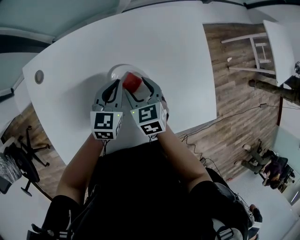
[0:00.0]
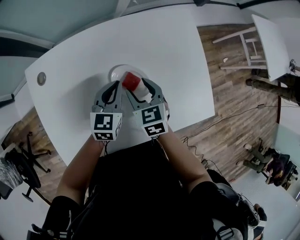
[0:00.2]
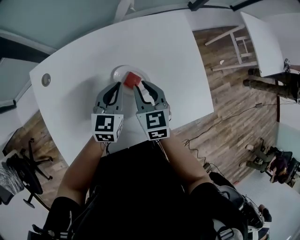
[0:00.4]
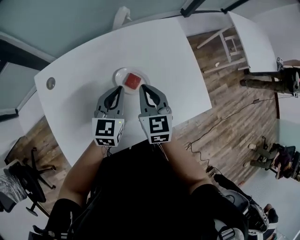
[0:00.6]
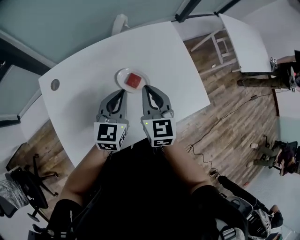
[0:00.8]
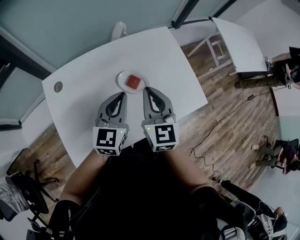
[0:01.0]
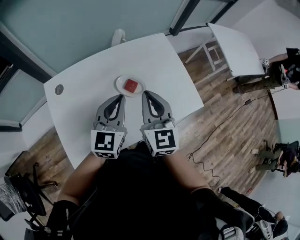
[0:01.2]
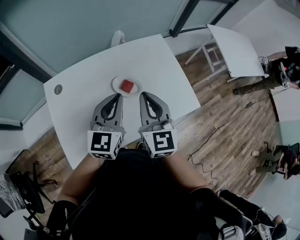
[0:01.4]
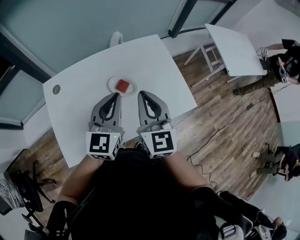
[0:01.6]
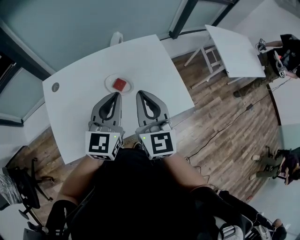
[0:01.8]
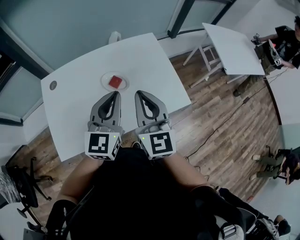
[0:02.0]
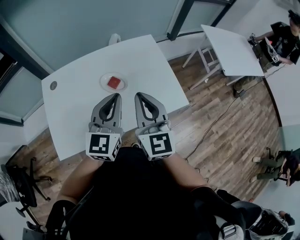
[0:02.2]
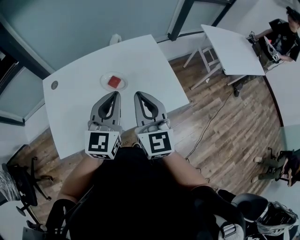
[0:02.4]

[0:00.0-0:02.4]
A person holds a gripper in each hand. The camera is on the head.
0:00.0 to 0:01.2: The grippers both shift upward and backward by approximately 25 cm. The left gripper changes its angle by approximately 30 degrees. Meanwhile the right gripper tips its fingers upward by some 40 degrees, and closes its fingers.
0:01.2 to 0:02.4: The right gripper travels to the right and backward by about 10 cm; the left gripper goes roughly 15 cm to the right, backward and upward.

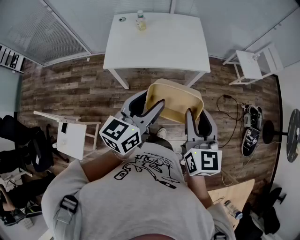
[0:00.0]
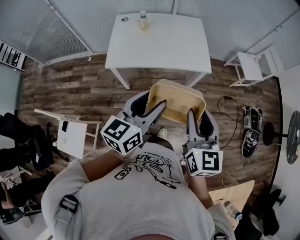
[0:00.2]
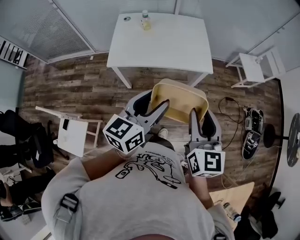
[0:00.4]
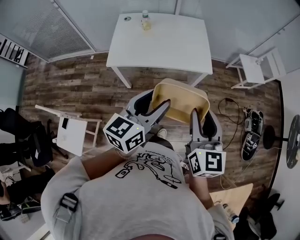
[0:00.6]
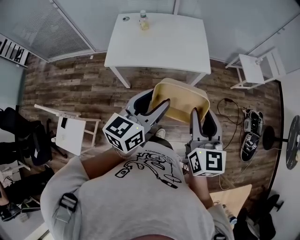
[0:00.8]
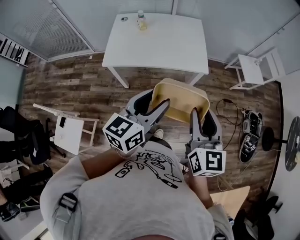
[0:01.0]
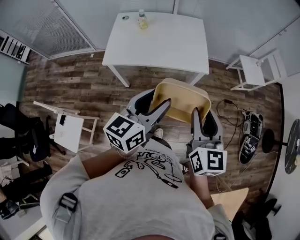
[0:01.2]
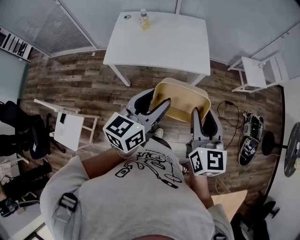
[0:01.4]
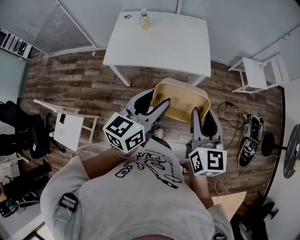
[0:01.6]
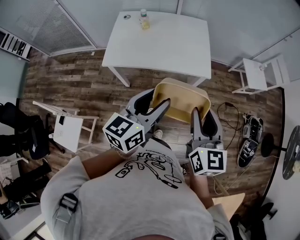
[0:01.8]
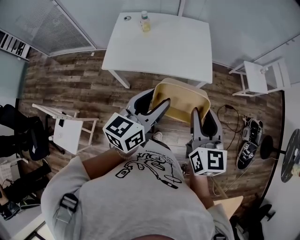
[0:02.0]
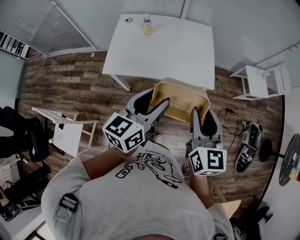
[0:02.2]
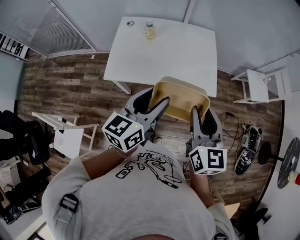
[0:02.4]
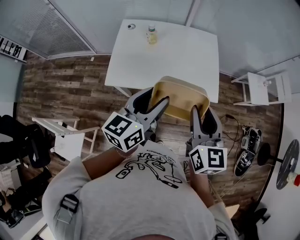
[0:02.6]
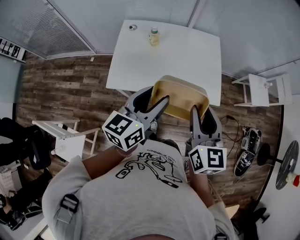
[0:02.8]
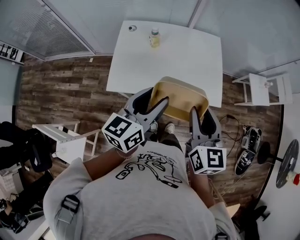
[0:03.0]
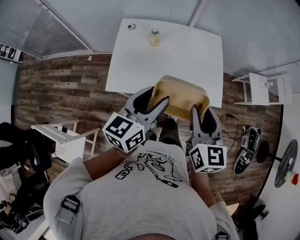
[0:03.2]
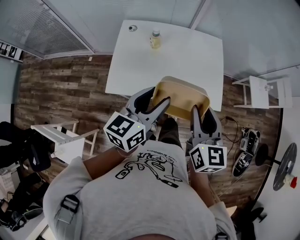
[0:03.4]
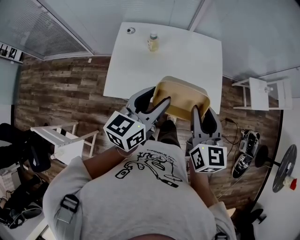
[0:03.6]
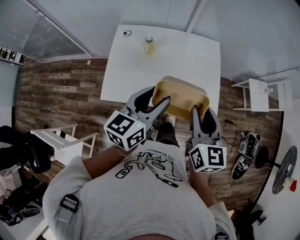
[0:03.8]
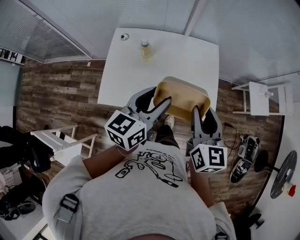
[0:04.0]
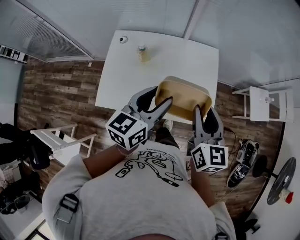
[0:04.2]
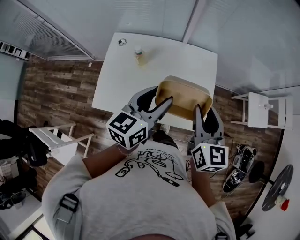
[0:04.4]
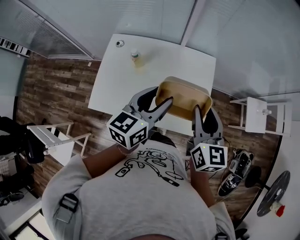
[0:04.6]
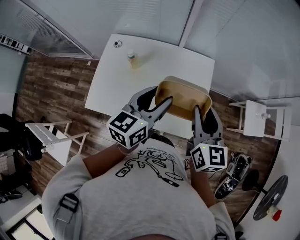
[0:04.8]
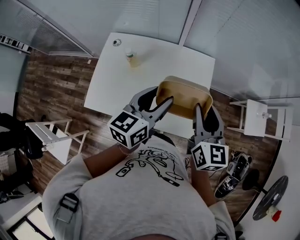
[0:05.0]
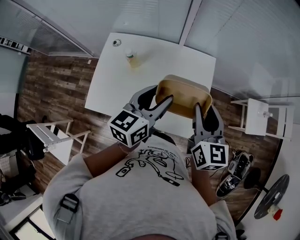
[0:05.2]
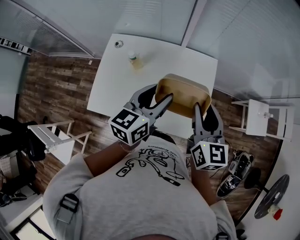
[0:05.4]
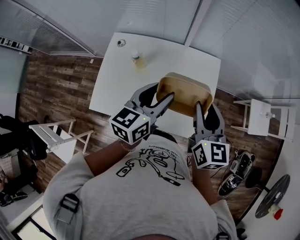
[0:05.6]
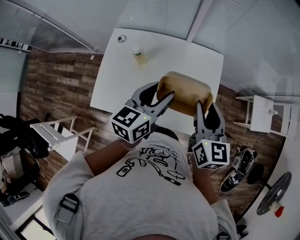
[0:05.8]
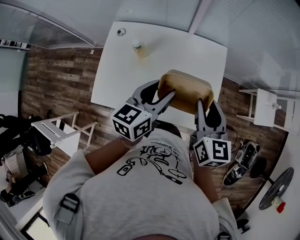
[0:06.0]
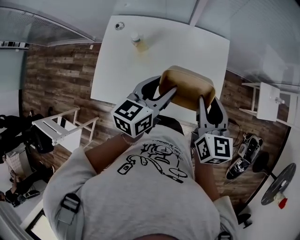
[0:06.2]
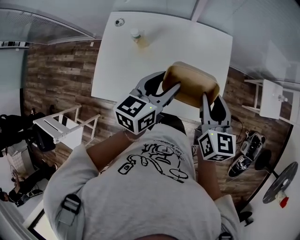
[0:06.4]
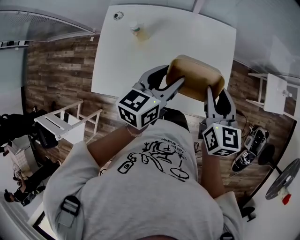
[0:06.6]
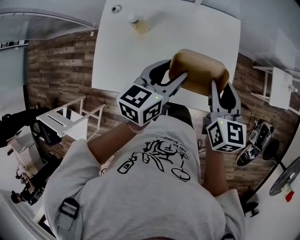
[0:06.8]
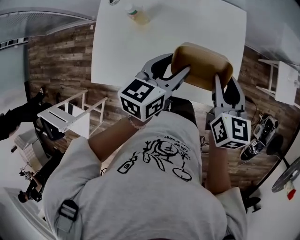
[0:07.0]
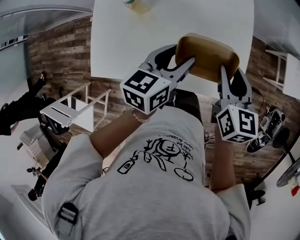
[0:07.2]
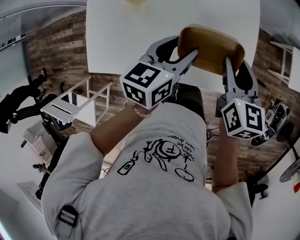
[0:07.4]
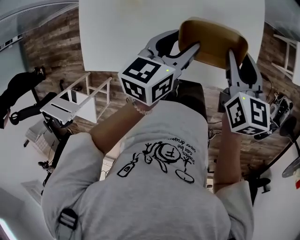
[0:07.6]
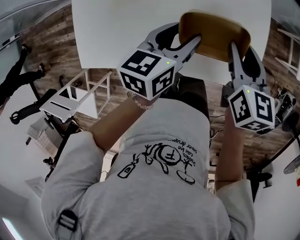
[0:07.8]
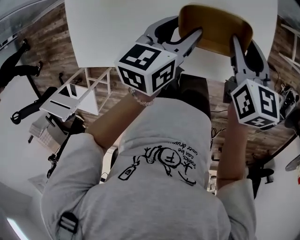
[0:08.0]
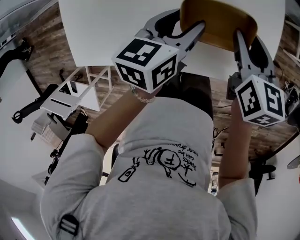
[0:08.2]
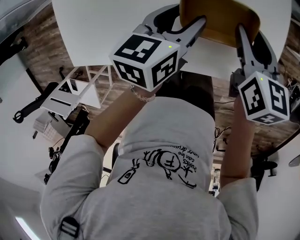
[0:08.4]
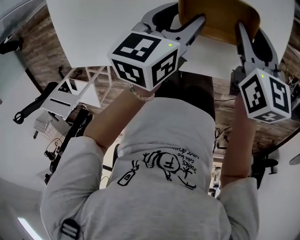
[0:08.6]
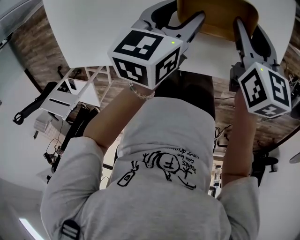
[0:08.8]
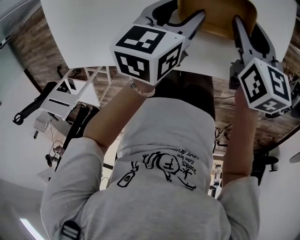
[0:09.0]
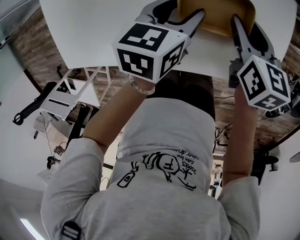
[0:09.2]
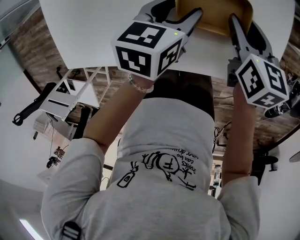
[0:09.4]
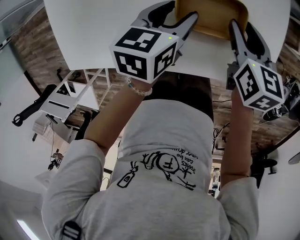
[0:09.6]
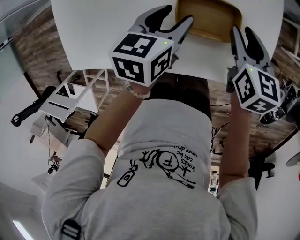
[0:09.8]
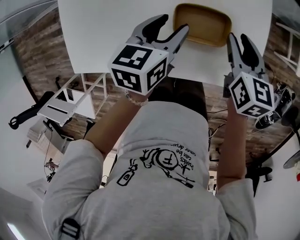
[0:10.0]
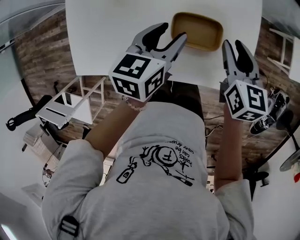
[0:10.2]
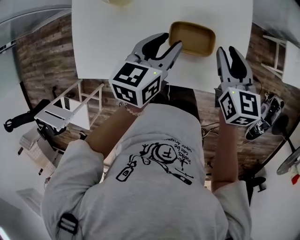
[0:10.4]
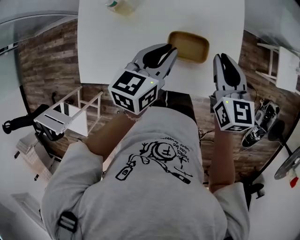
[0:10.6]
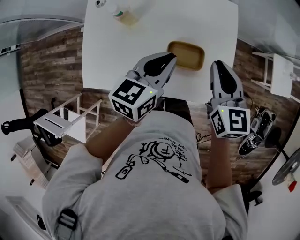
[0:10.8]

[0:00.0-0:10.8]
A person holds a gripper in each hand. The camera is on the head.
0:00.0 to 0:01.6: Both grippers travel together to the right, approximately 5 cm.
0:01.6 to 0:03.0: Both grippers travel together forward and to the left, approximately 25 cm.
0:03.0 to 0:04.6: Both grippers travel together forward and to the right, approximately 25 cm.
0:04.6 to 0:06.2: Both grippers travel together downward, roughly 5 cm.
0:06.2 to 0:07.8: Both grippers travel together downward, some 20 cm.
0:07.8 to 0:09.2: The grippers both shift downward by about 10 cm.
0:09.2 to 0:10.8: Both grippers travel together upward, some 25 cm. The left gripper turns by about 20 degrees, and closes its fingers; the right gripper turns by roughly 30 degrees, and closes.

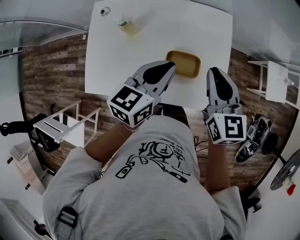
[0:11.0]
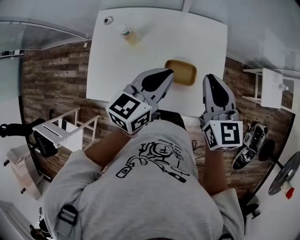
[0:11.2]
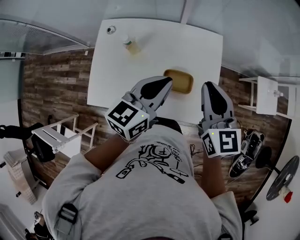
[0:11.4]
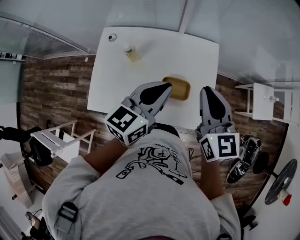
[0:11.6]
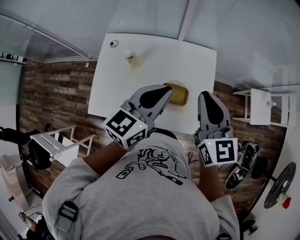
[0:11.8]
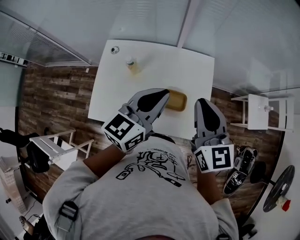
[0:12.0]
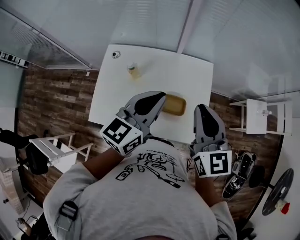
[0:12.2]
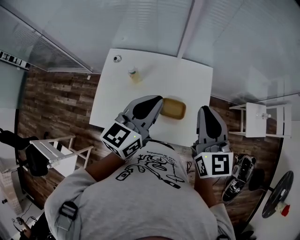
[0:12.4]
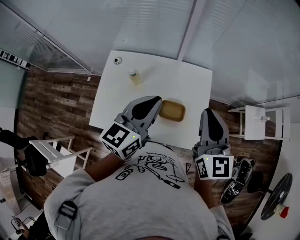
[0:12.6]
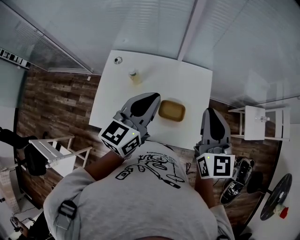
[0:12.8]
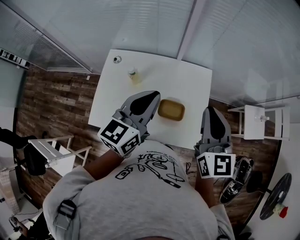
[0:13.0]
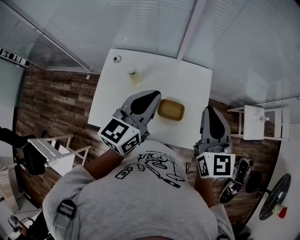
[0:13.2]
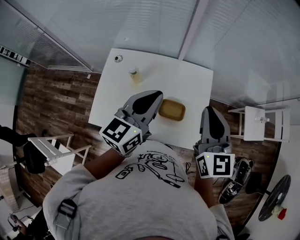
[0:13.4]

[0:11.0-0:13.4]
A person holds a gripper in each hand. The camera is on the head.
0:11.0 to 0:12.2: The grippers both shift upward by approximately 15 cm.
0:12.2 to 0:13.4: The grippers stay close to where they were, moving slightly.

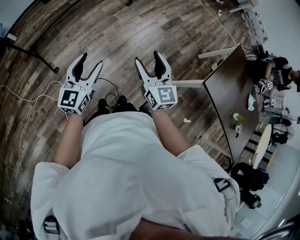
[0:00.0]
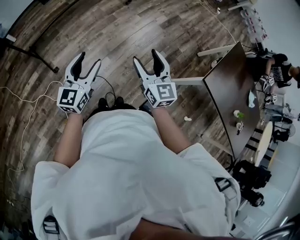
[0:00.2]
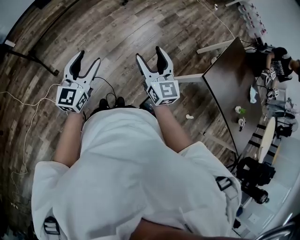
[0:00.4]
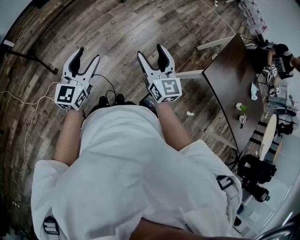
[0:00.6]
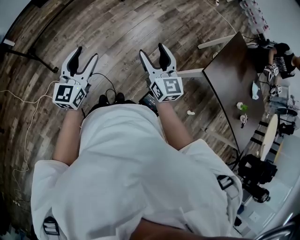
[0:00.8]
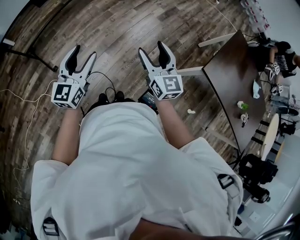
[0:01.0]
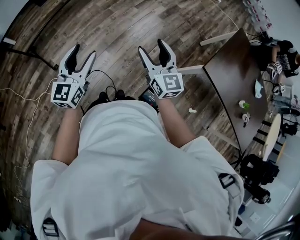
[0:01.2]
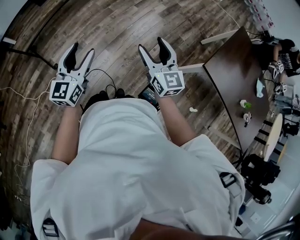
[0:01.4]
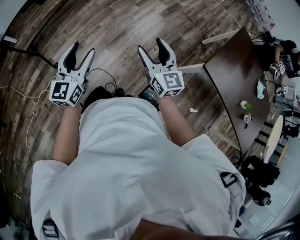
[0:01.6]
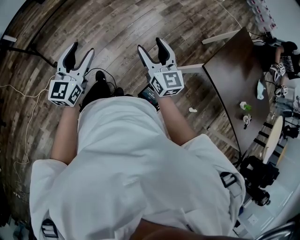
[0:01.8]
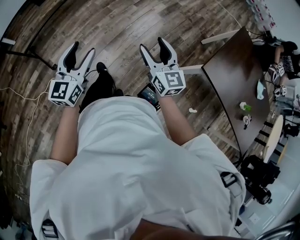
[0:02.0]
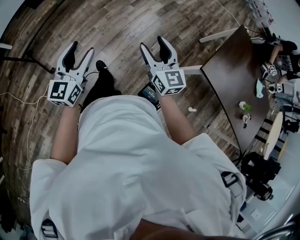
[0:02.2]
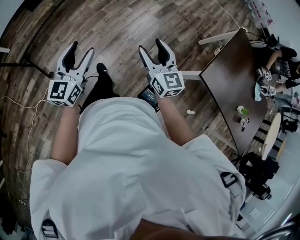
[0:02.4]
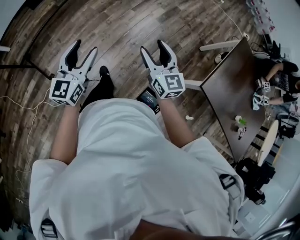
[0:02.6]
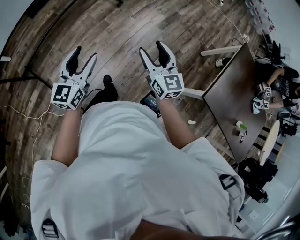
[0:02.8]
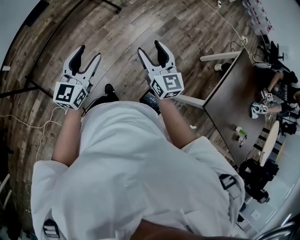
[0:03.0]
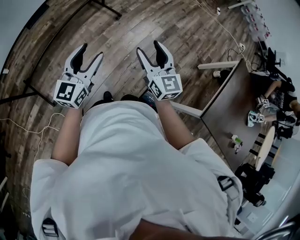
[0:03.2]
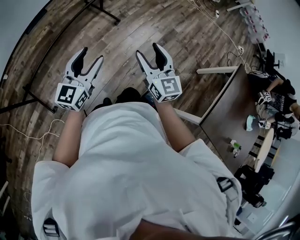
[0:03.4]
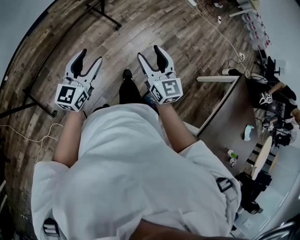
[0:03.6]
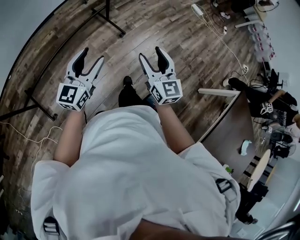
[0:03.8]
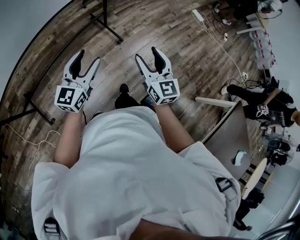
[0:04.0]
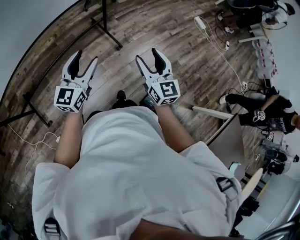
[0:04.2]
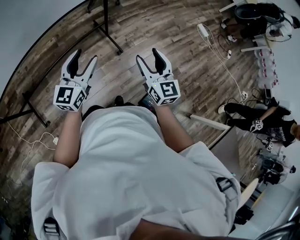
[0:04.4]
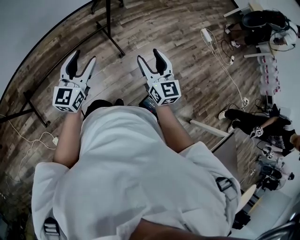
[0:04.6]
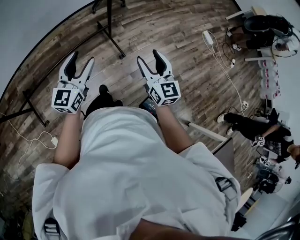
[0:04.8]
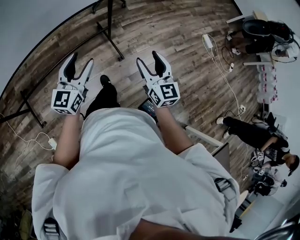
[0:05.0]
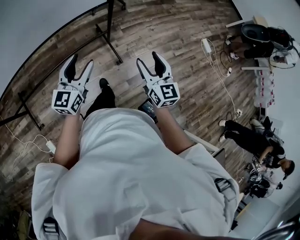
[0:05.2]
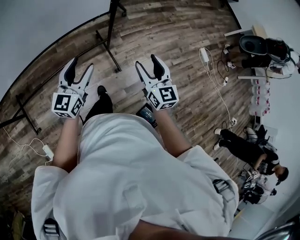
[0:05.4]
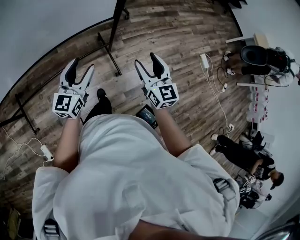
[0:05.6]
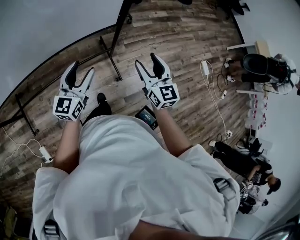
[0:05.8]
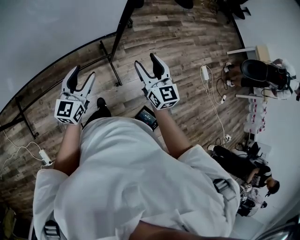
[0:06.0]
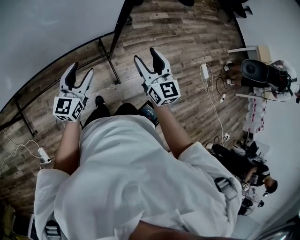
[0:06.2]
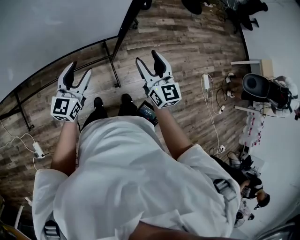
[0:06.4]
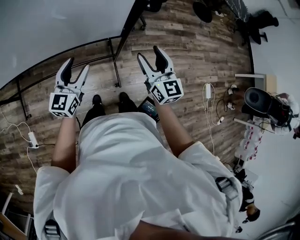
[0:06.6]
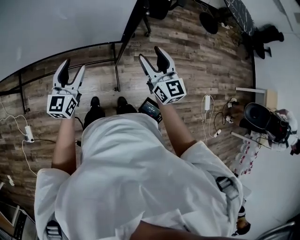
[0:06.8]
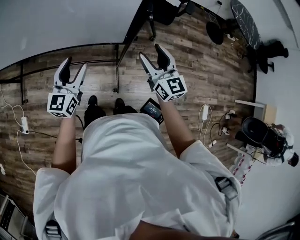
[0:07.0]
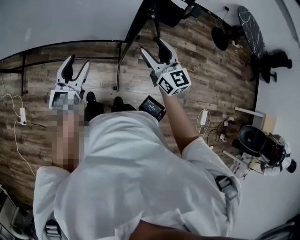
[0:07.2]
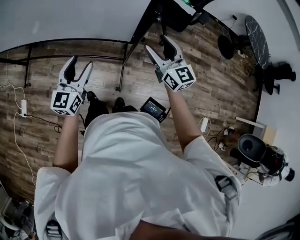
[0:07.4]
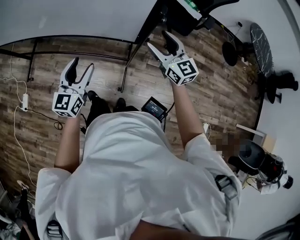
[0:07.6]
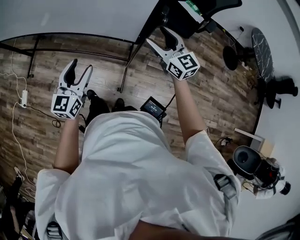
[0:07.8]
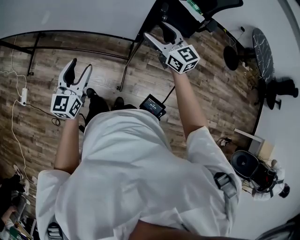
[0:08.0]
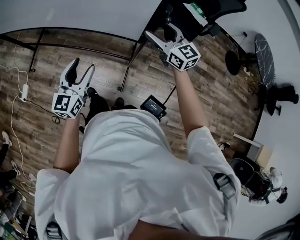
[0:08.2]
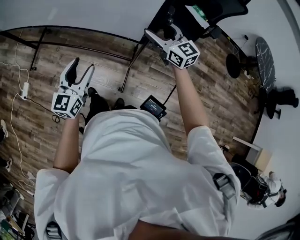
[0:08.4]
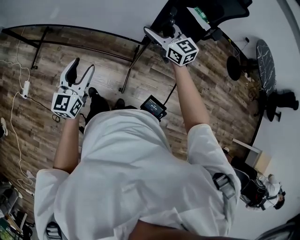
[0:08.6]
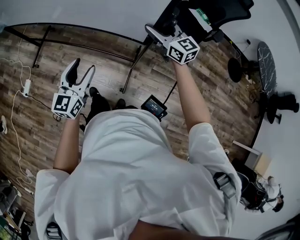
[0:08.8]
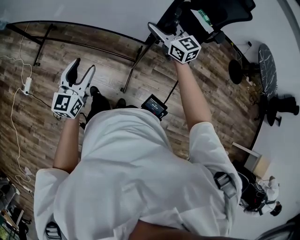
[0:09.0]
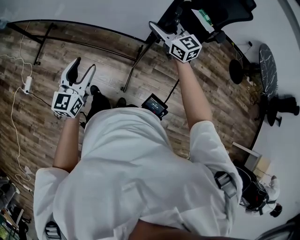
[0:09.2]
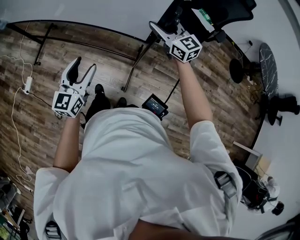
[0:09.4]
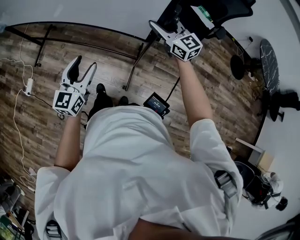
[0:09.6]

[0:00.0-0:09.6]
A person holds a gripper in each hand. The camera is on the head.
0:00.0 to 0:01.6: Both grippers travel together to the right, approximately 10 cm.
0:01.6 to 0:03.2: The pair of grippers is taken forward, some 40 cm.
0:03.2 to 0:04.8: The pair of grippers is taken forward, some 50 cm. The left gripper changes its angle by about 20 degrees.
0:04.8 to 0:06.4: Both grippers move forward, about 30 cm.
0:06.4 to 0:08.0: The left gripper ends up approximately 5 cm from where it was, and turns by some 40 degrees. The right gripper ends up about 15 cm from where it was, and changes its angle by about 50 degrees.
0:08.0 to 0:09.6: The right gripper closes its fingers.
